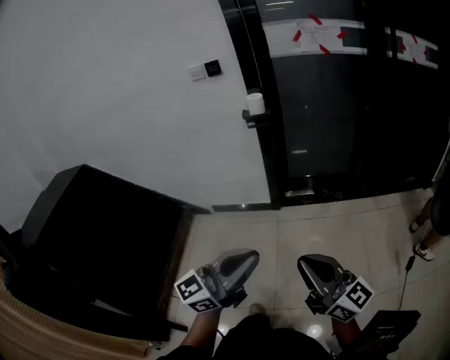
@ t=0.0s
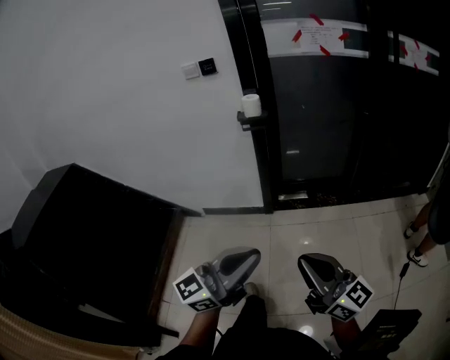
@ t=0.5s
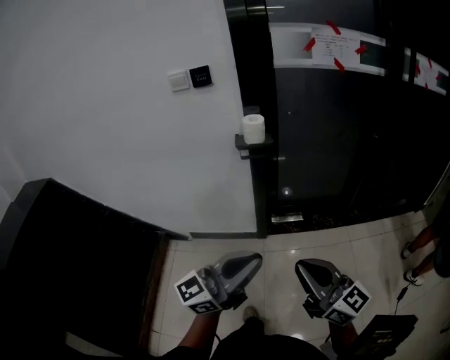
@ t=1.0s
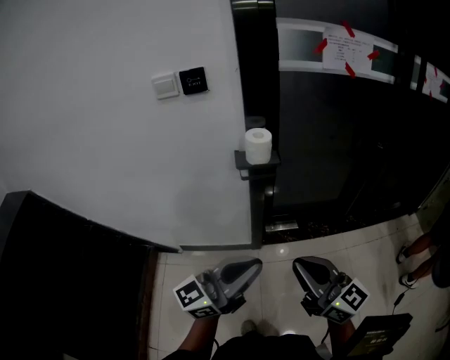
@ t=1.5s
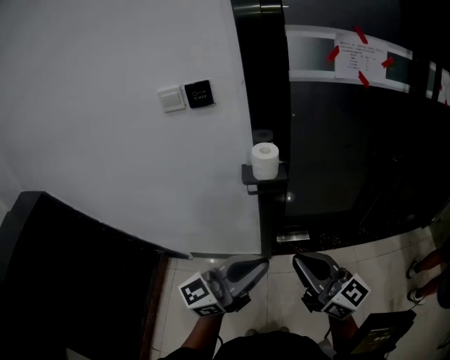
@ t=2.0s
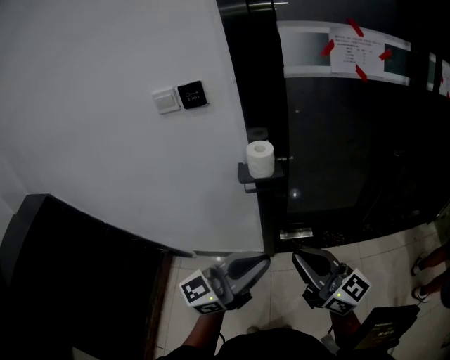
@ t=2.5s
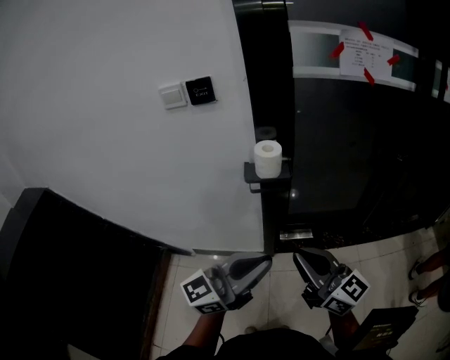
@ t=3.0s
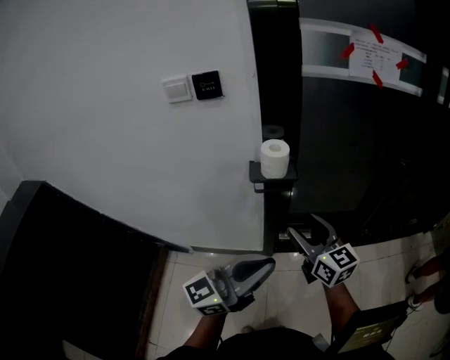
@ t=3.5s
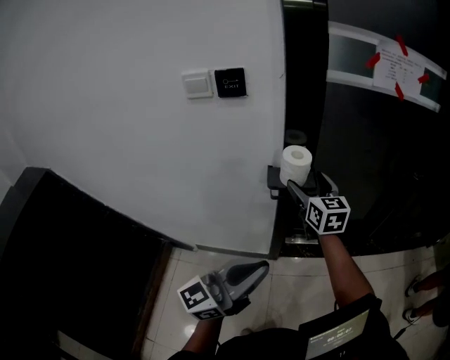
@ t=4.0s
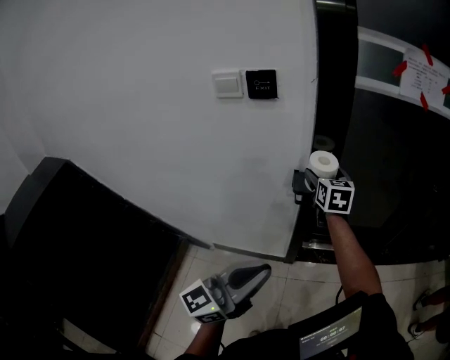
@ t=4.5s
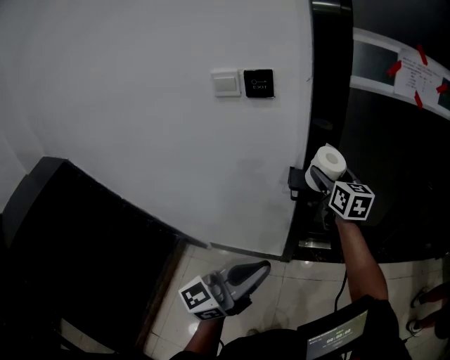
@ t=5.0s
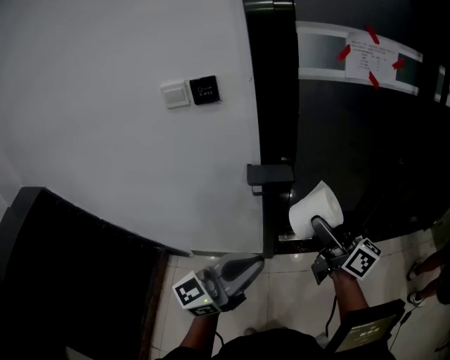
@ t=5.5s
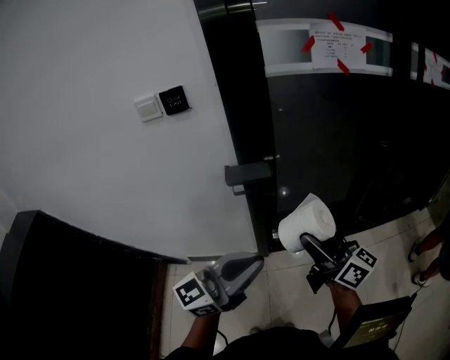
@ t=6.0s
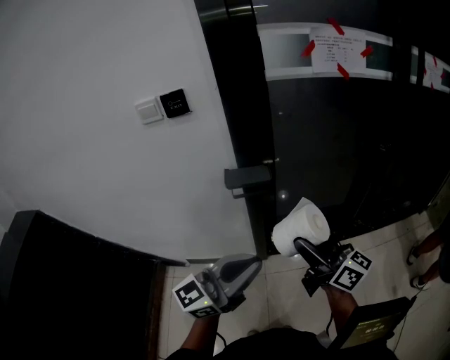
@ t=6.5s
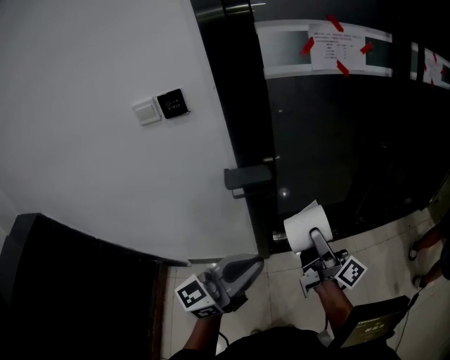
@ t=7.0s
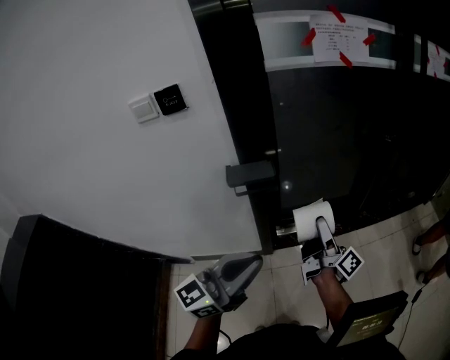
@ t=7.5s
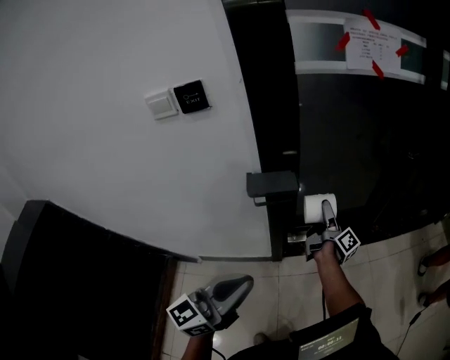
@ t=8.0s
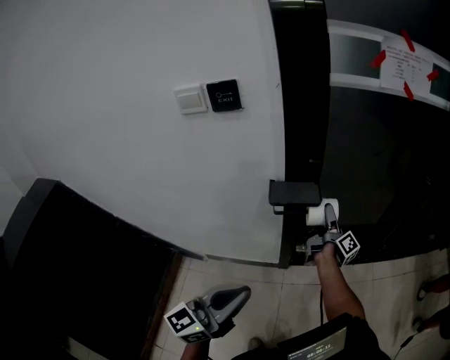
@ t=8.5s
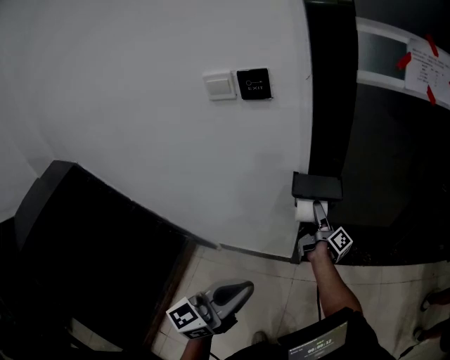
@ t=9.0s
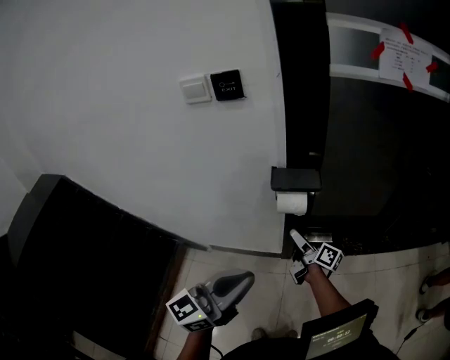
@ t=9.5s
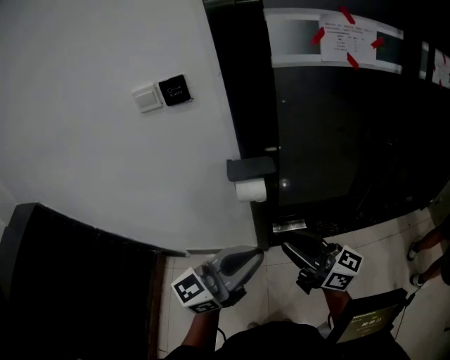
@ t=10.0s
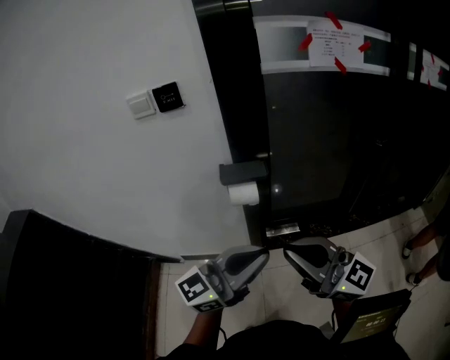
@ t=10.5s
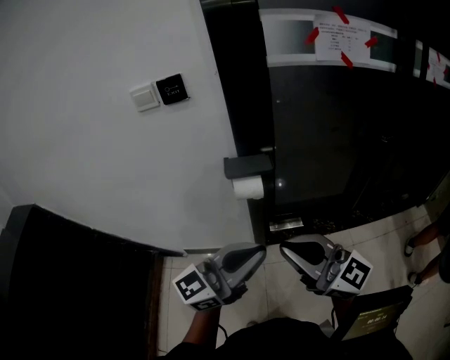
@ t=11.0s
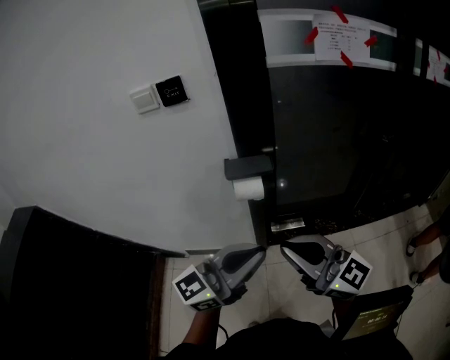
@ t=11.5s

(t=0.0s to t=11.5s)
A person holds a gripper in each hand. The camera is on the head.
t=0.0s - t=2.0s: Both grippers are carried forward, some 50 cm.
t=2.0s - t=4.0s: The right gripper goes some 30 cm forward, turns by approximately 30 degrees, and opens up; the left gripper shifts roughly 5 cm to the left.
t=4.0s - t=6.0s: The right gripper heads backward and to the right, covering some 25 cm, and swivels approximately 40 degrees, while the left gripper goes approximately 10 cm to the right.
t=6.0s - t=7.5s: The right gripper heads downward and forward, covering some 15 cm, and turns by roughly 40 degrees.
t=7.5s - t=9.5s: The right gripper travels to the left and downward by some 25 cm, and swivels approximately 30 degrees, while the left gripper moves to the left, about 10 cm.
t=9.5s - t=11.5s: The left gripper shifts roughly 10 cm to the right. The right gripper travels upward and backward by approximately 35 cm, twists about 70 degrees counterclockwise, seen from behind, and closes its fingers.

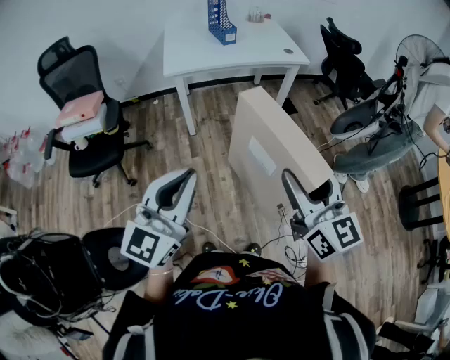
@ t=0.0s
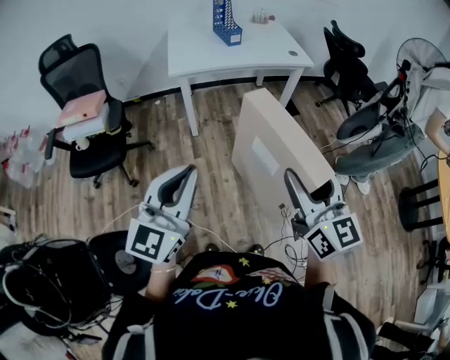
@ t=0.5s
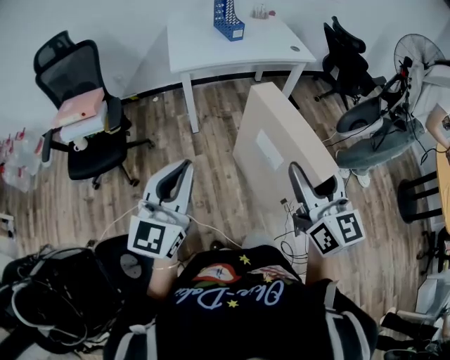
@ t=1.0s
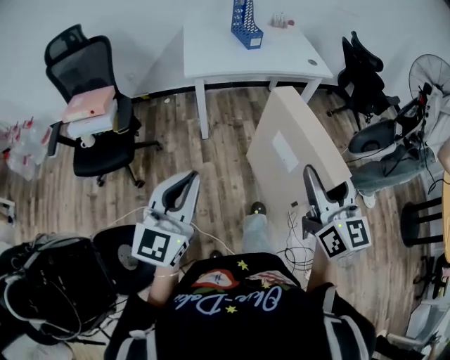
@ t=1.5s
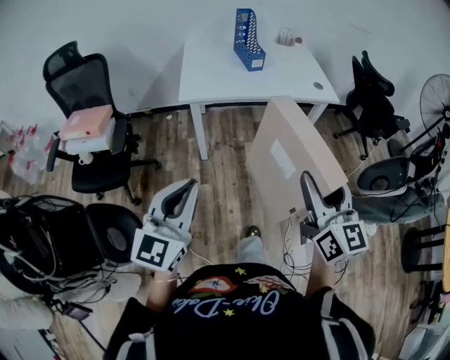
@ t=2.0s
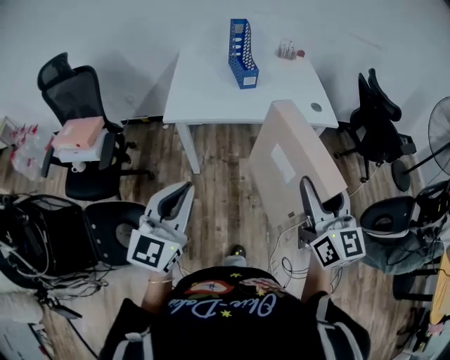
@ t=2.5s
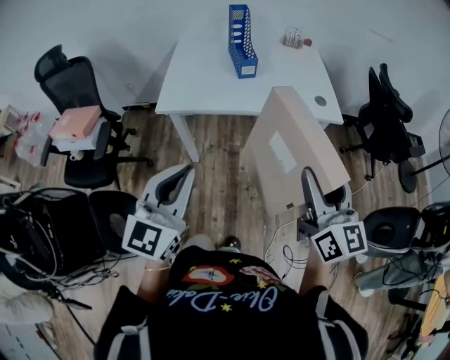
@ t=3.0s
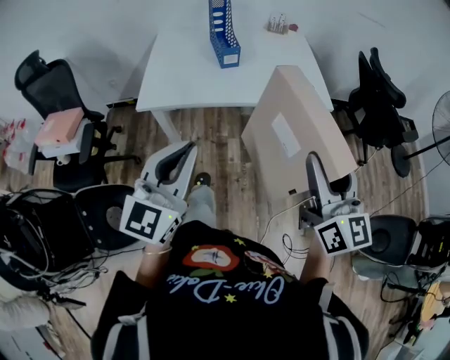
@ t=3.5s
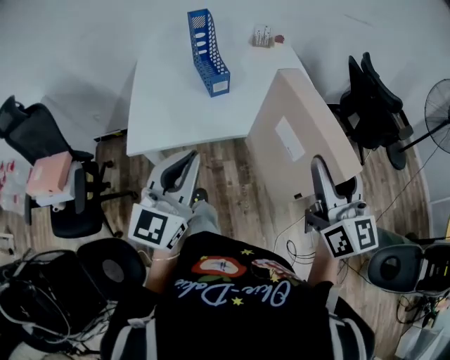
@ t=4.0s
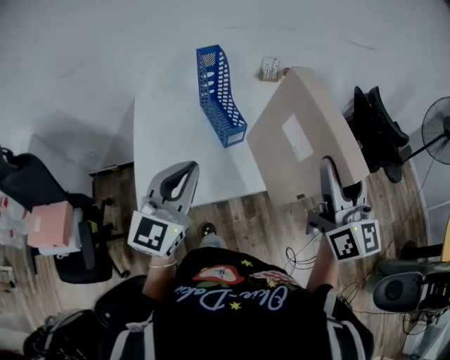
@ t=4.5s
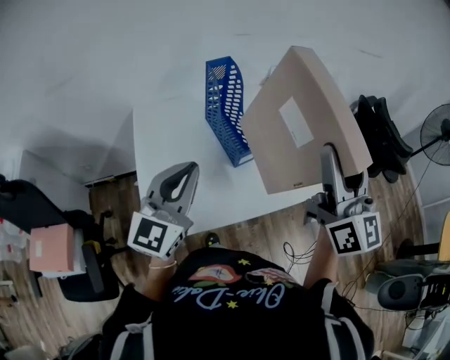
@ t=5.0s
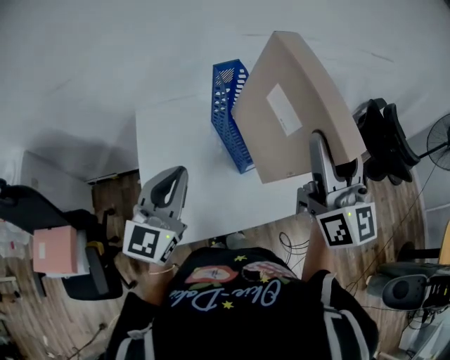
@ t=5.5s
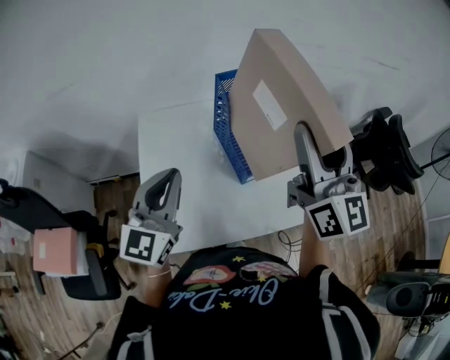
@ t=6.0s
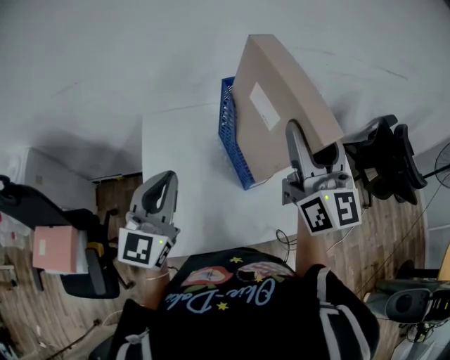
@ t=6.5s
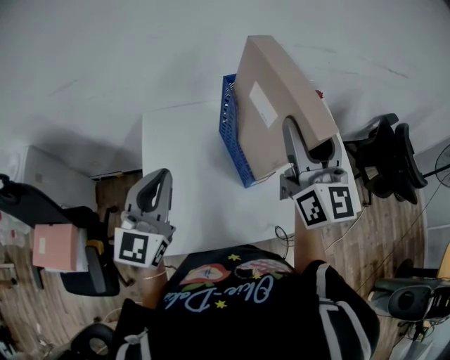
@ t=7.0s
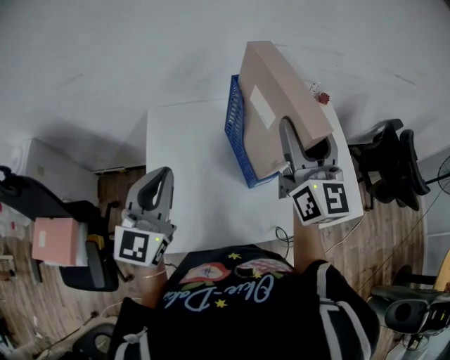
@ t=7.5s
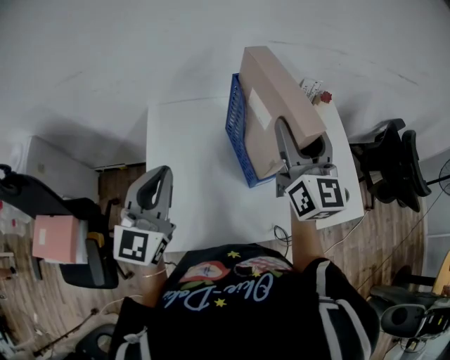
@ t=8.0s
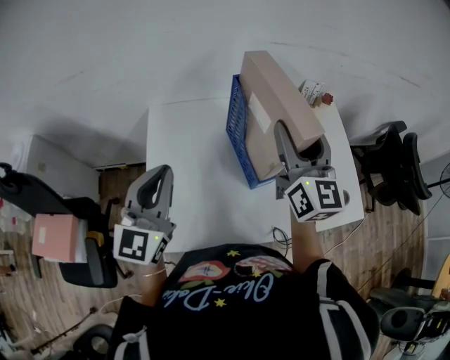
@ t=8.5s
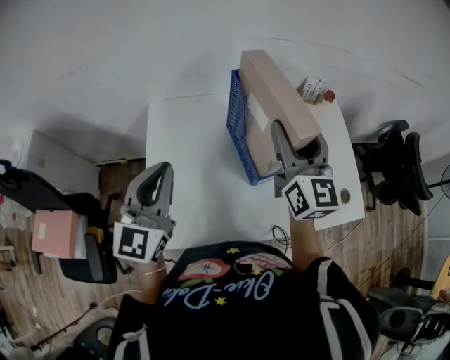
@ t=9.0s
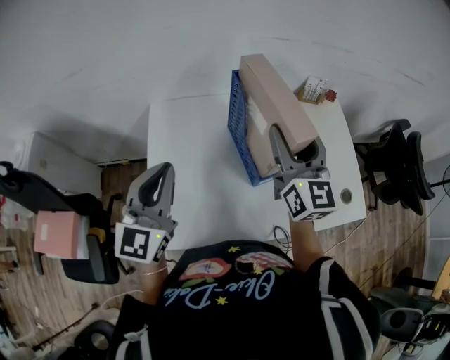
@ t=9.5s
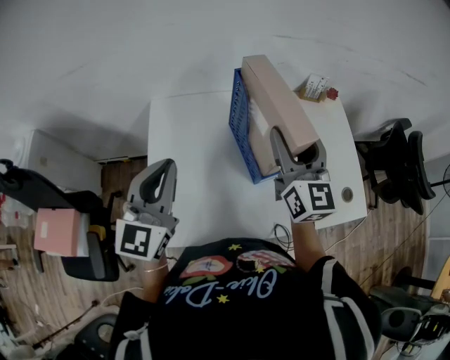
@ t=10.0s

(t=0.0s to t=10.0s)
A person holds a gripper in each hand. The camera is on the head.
t=0.0s - t=2.0s: The two grippers go about 20 cm forward.
t=2.0s - t=4.0s: The right gripper travels forward and to the right by approximately 35 cm, while the left gripper goes about 35 cm forward.
t=4.0s - t=6.0s: Both grippers move forward and to the left, roughly 40 cm.
t=6.0s - t=8.0s: The right gripper is displaced downward and forward by about 10 cm.
t=8.0s - t=10.0s: The grippers move only a little.

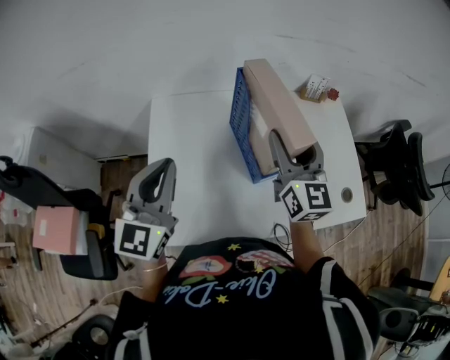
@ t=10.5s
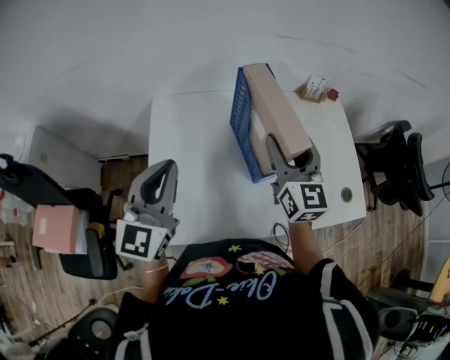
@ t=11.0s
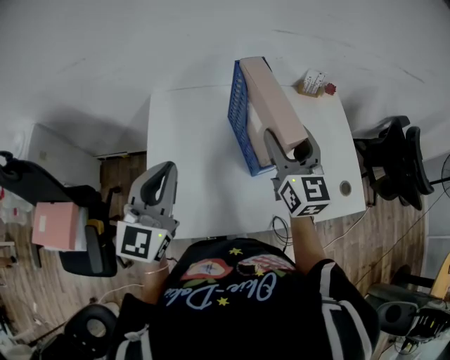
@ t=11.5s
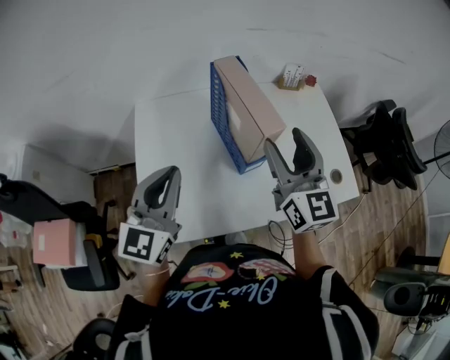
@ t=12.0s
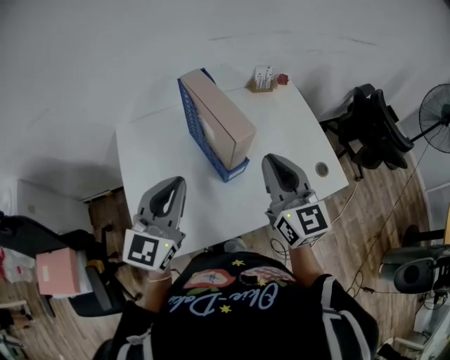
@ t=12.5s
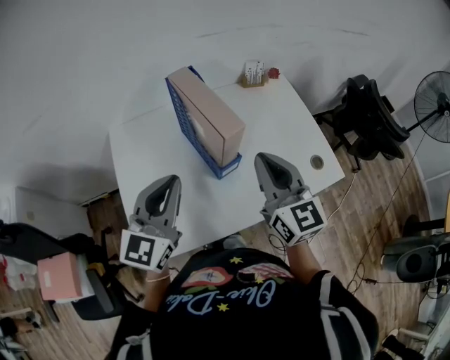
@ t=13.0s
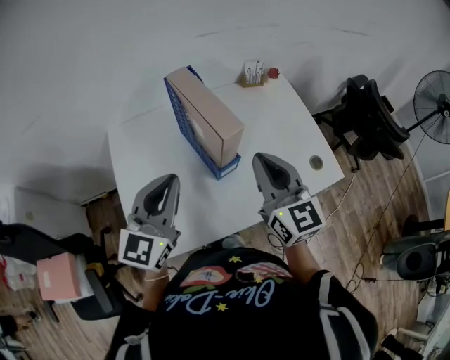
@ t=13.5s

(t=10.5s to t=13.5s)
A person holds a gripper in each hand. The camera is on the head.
t=10.5s - t=12.0s: The left gripper ends up some 5 cm from where it was, while the right gripper goes about 5 cm backward.
t=12.0s - t=13.5s: The left gripper goes some 5 cm to the right, while the right gripper changes place by approximately 5 cm, and closes.

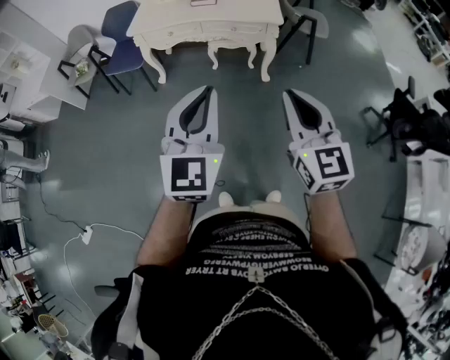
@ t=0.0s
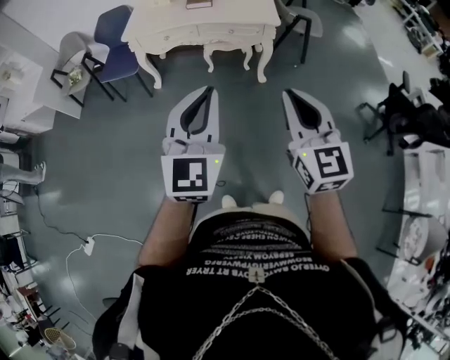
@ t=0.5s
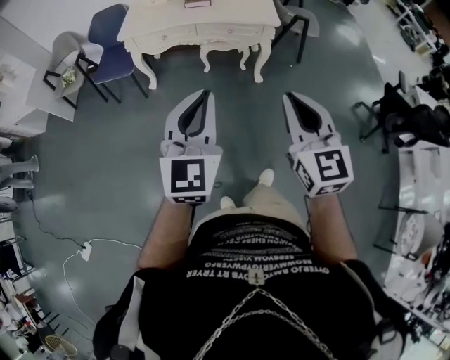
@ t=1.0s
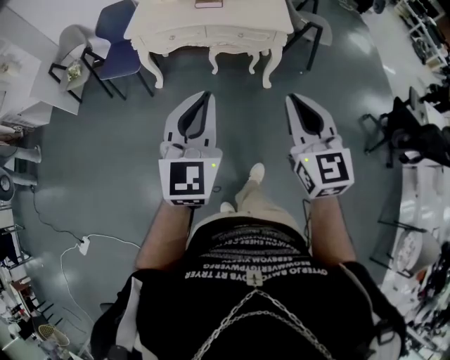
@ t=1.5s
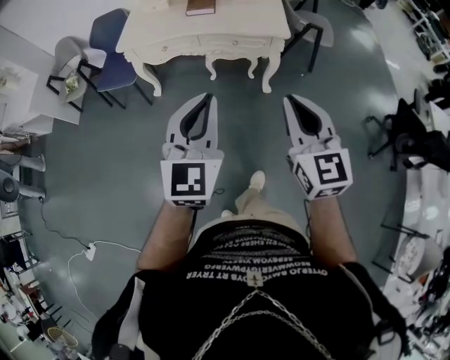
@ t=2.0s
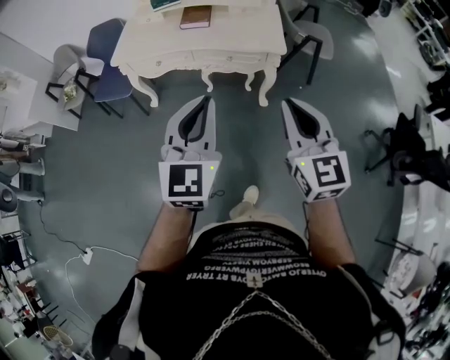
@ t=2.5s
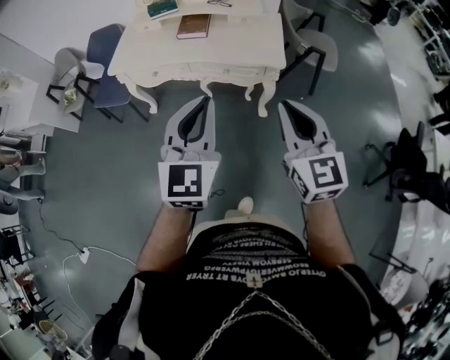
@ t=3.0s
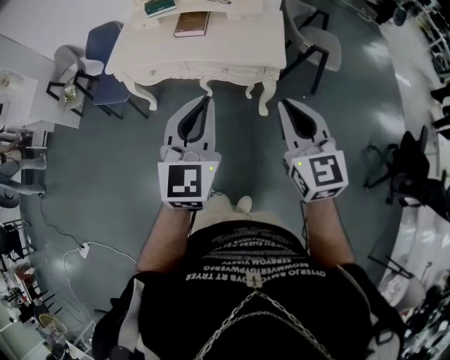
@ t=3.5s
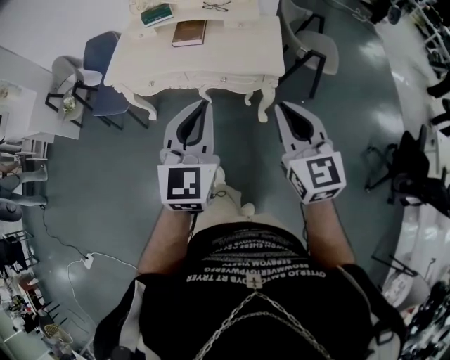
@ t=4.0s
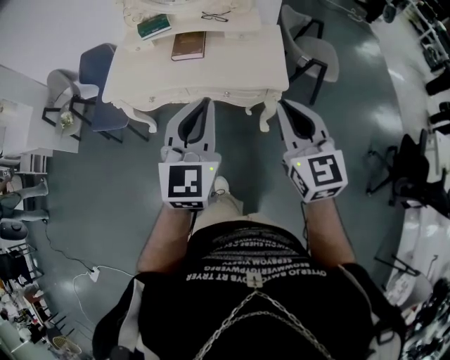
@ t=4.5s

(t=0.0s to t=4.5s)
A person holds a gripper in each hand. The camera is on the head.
t=0.0s - t=2.0s: The grippers both shift forward by approximately 20 cm.
t=2.0s - t=4.5s: Both grippers travel together forward, roughly 30 cm.
